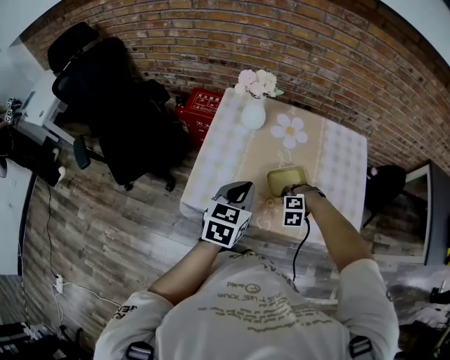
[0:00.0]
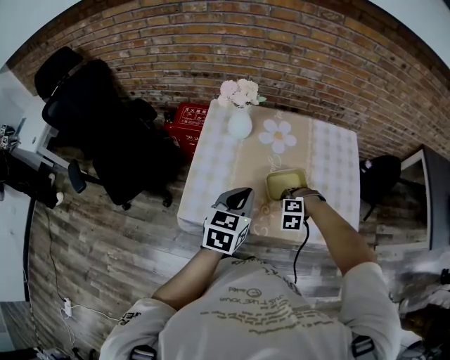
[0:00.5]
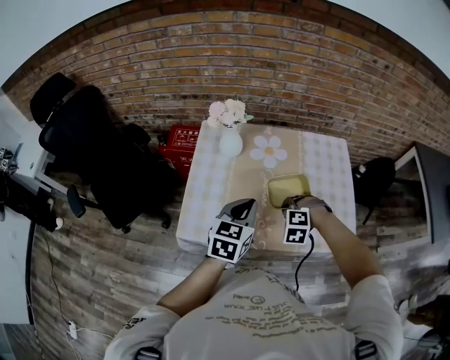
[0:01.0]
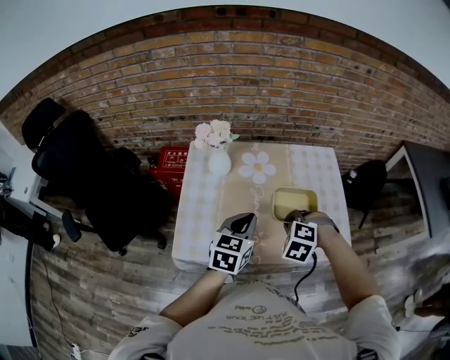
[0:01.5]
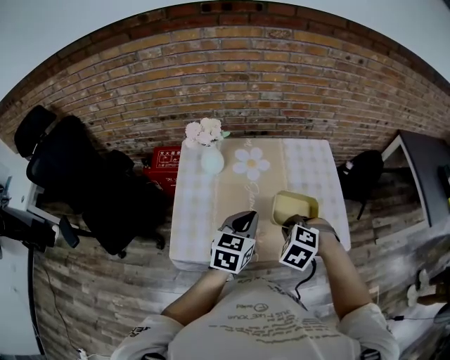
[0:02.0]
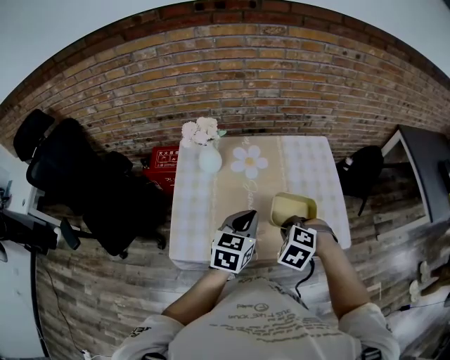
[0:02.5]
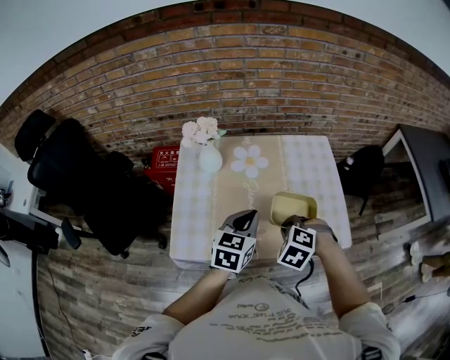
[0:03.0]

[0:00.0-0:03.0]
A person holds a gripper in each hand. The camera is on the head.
0:00.0 to 0:01.5: The right gripper goes roughly 20 cm upward, and changes its angle by about 30 degrees. The left gripper shifts by about 10 cm.
0:01.5 to 0:03.0: The grippers stay close to where they were, moving slightly.

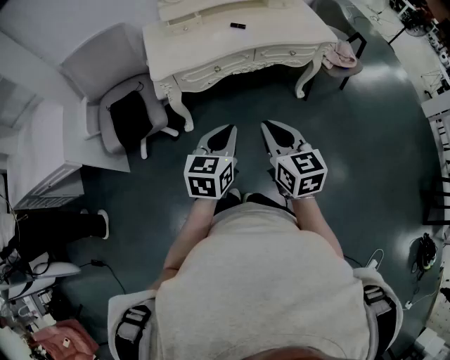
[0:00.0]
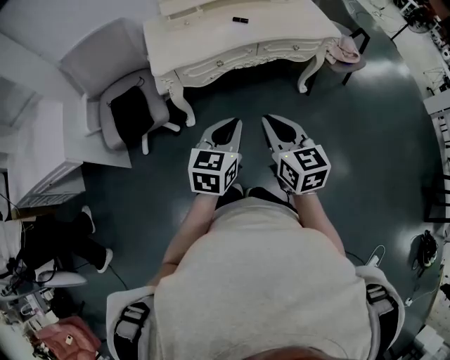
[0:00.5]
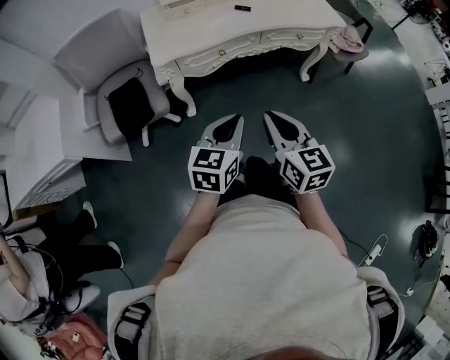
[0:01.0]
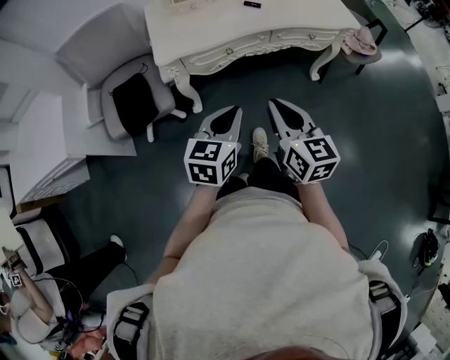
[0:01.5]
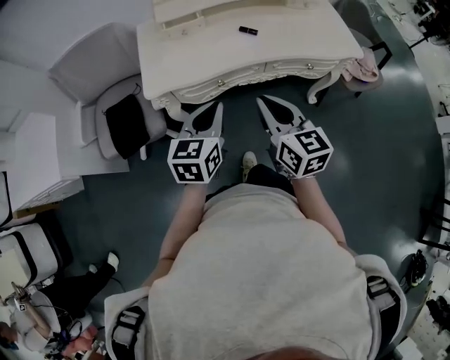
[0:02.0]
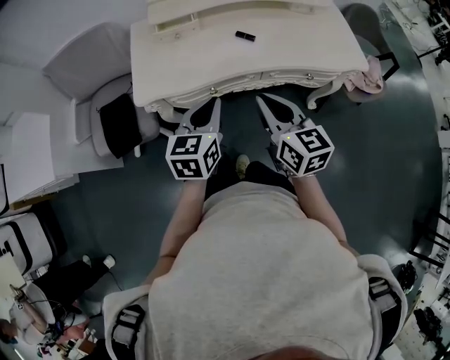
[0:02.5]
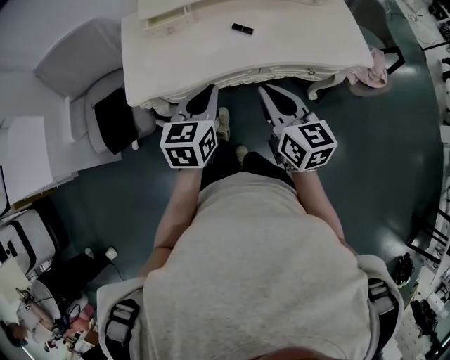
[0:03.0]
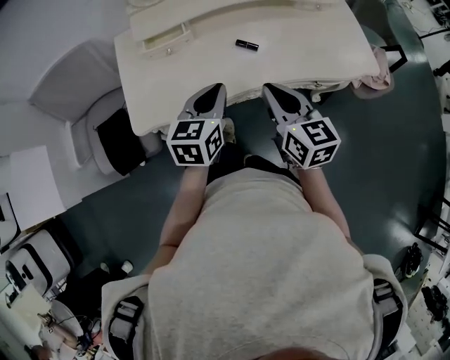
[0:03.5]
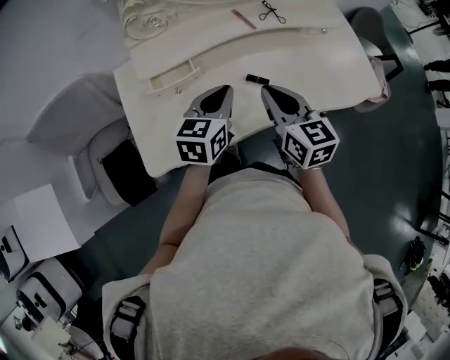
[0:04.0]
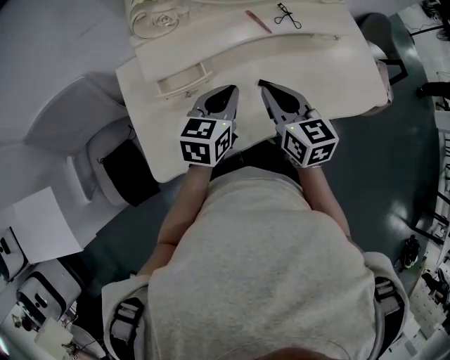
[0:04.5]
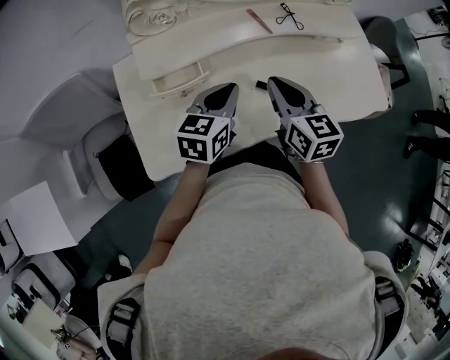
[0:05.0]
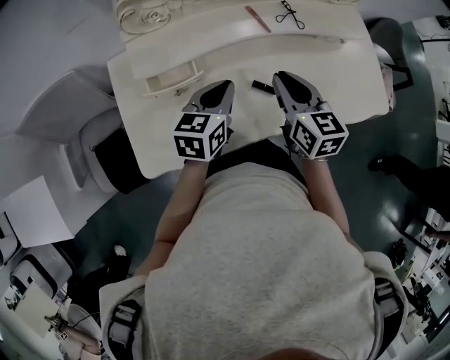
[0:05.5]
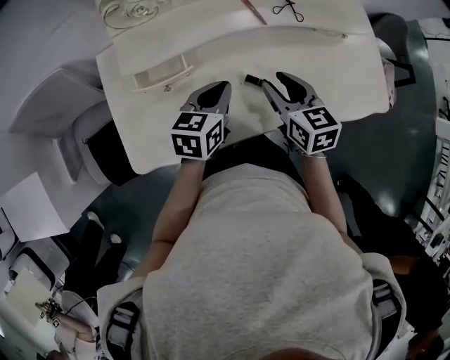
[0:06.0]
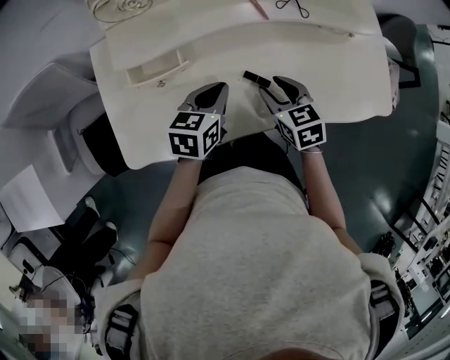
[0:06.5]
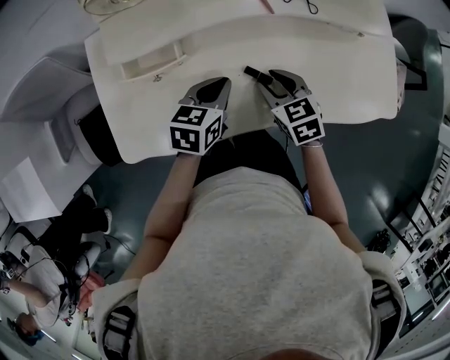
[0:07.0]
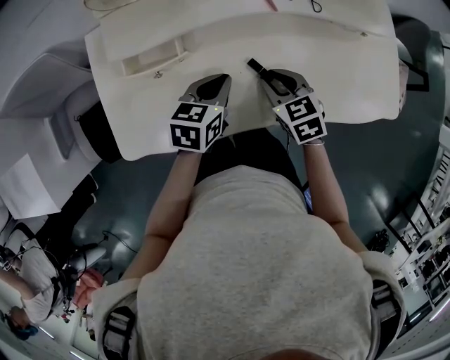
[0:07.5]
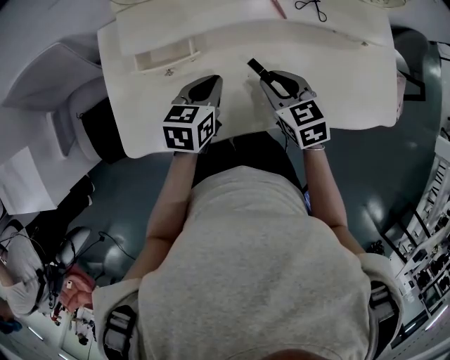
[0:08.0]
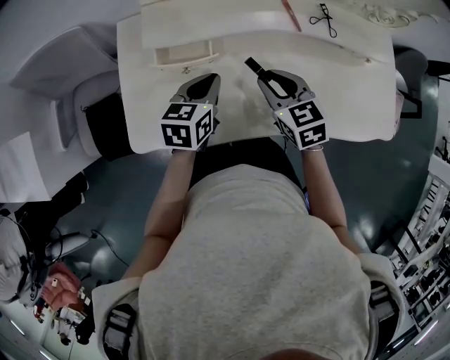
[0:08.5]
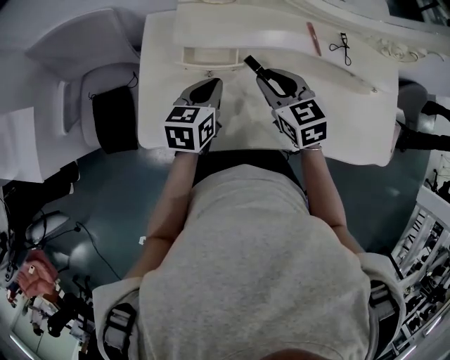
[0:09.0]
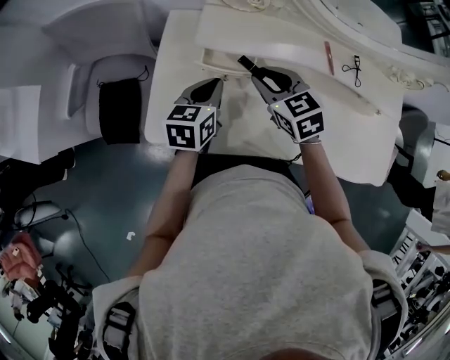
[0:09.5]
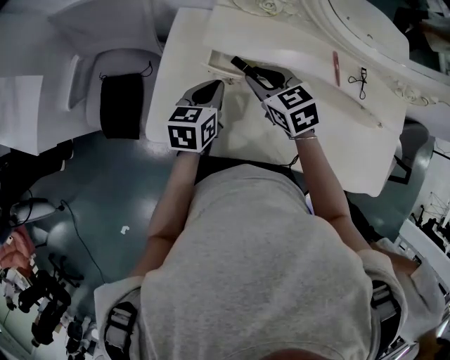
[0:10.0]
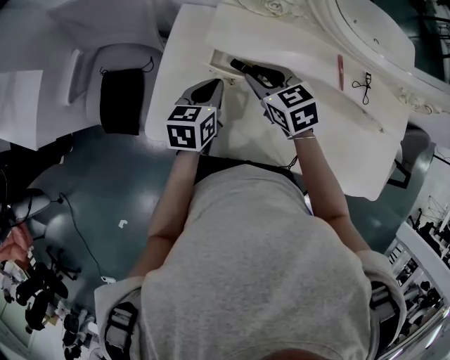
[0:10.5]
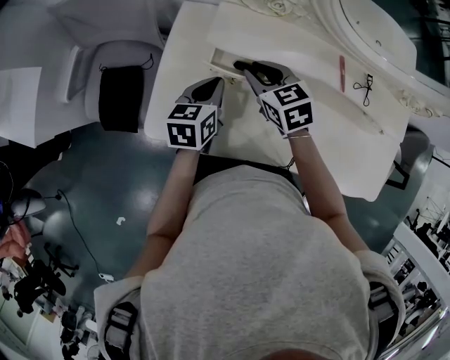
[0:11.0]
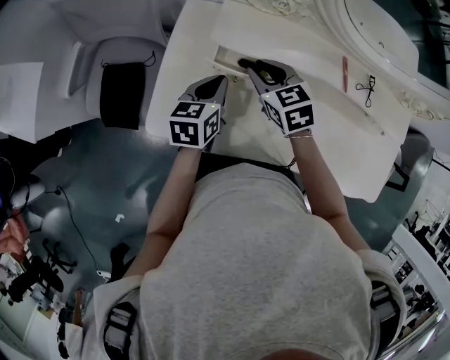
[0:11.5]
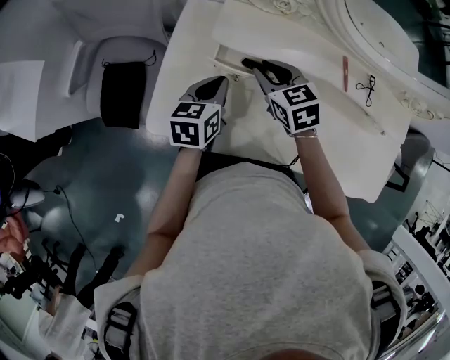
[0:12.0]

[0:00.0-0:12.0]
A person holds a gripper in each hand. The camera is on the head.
0:00.0 to 0:02.0: The grippers both shift forward by approximately 20 cm.
0:02.0 to 0:04.0: Both grippers travel together forward, about 30 cm.
0:04.0 to 0:06.0: The right gripper is displaced downward and forward by some 10 cm, and opens up, while the left gripper travels downward by approximately 5 cm.
0:06.0 to 0:08.0: The right gripper travels downward by approximately 5 cm, and rotates roughly 20 degrees. Meanwhile the left gripper shifts by roughly 5 cm.
0:08.0 to 0:10.0: The left gripper shifts about 15 cm to the left, and swivels roughly 20 degrees. The right gripper heads to the left and forward, covering approximately 20 cm, and changes its angle by about 30 degrees.
0:10.0 to 0:12.0: The grippers make only small movements.

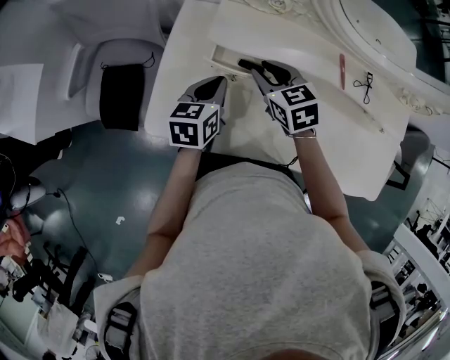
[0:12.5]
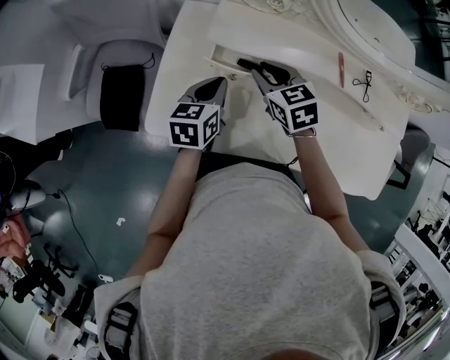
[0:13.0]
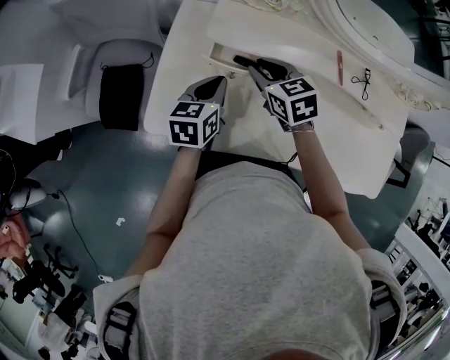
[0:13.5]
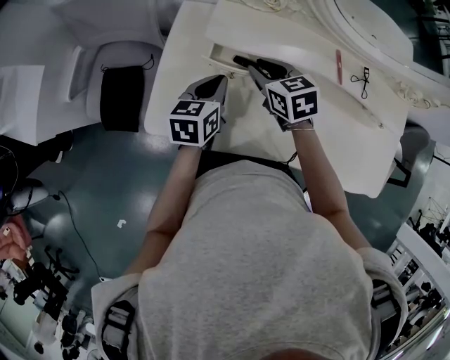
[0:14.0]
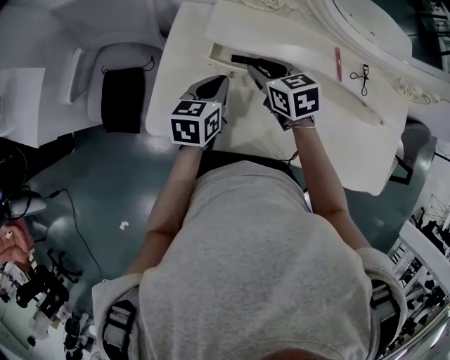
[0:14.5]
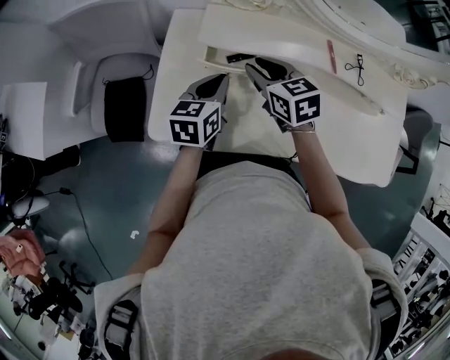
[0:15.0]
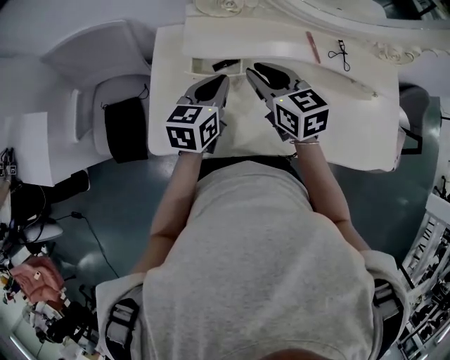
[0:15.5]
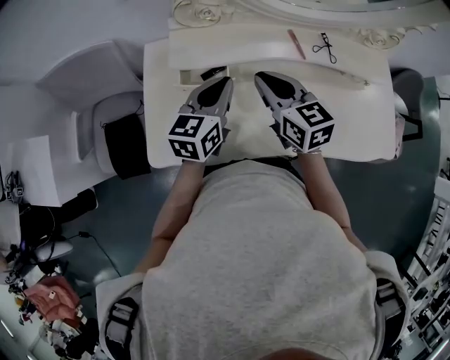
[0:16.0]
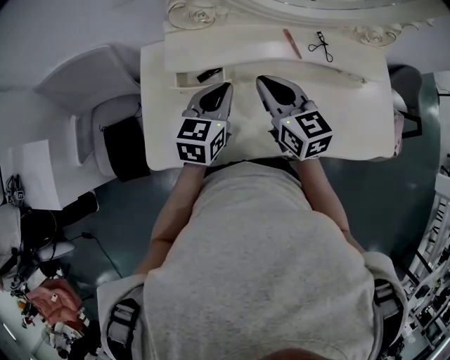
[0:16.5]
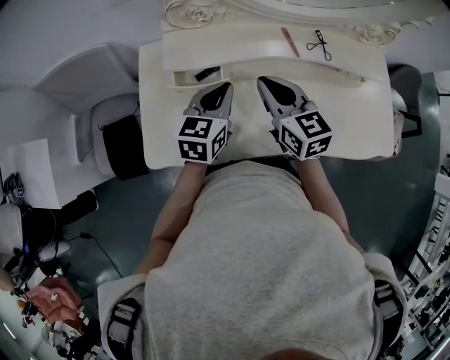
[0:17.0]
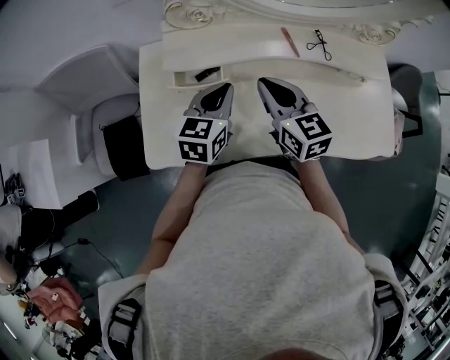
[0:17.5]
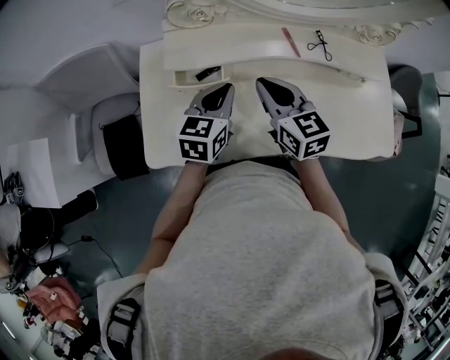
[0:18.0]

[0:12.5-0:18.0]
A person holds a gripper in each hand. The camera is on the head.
0:12.5 to 0:14.5: The grippers move only a little.
0:14.5 to 0:16.0: The right gripper moves upward, to the right and backward, about 15 cm, and turns by some 30 degrees, while the left gripper shifts roughly 10 cm to the right and upward, and rotates some 20 degrees.
0:16.0 to 0:18.0: The grippers make only small movements.

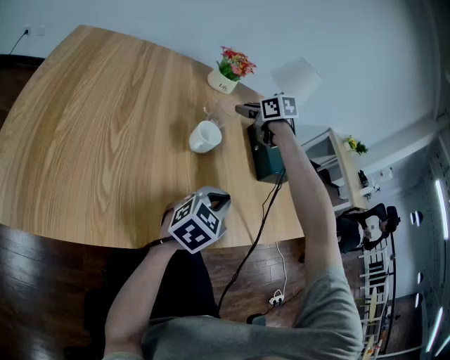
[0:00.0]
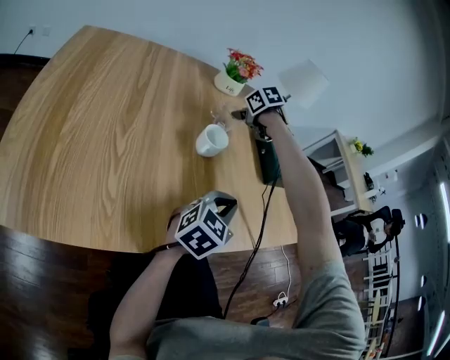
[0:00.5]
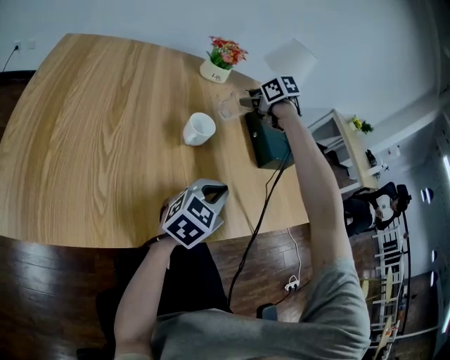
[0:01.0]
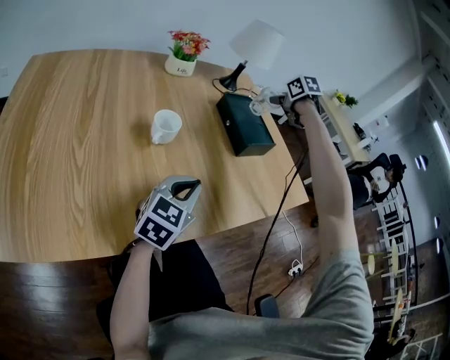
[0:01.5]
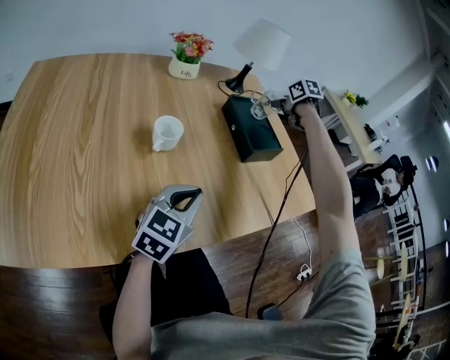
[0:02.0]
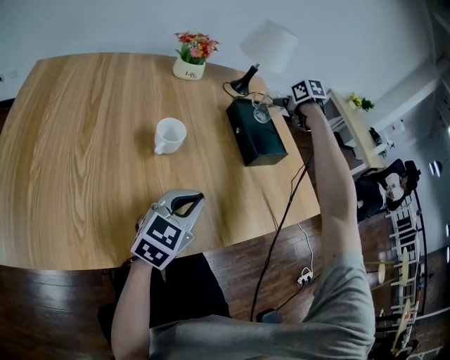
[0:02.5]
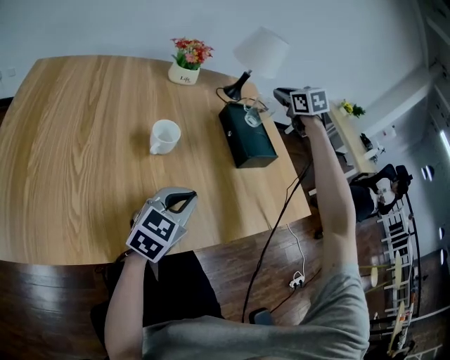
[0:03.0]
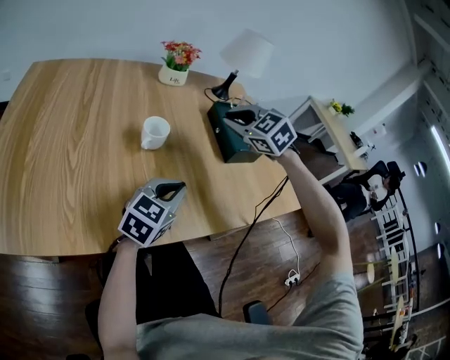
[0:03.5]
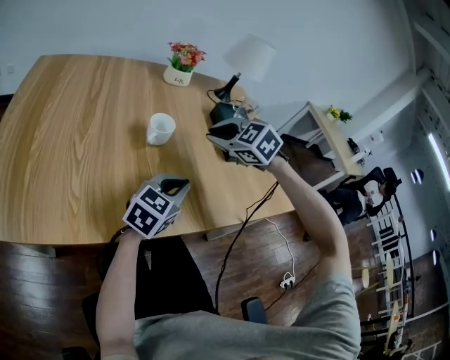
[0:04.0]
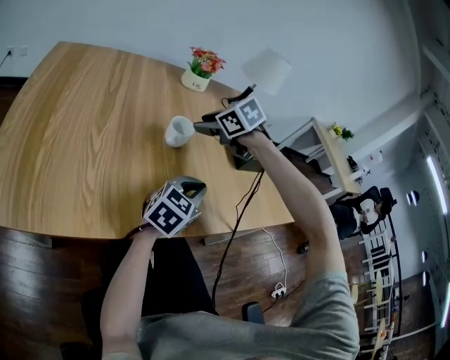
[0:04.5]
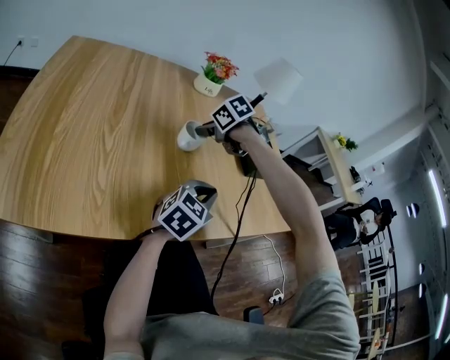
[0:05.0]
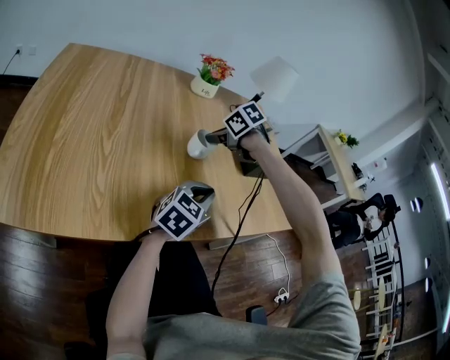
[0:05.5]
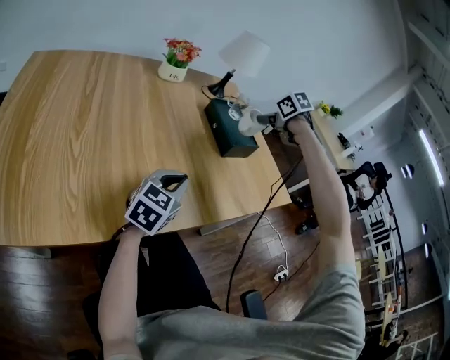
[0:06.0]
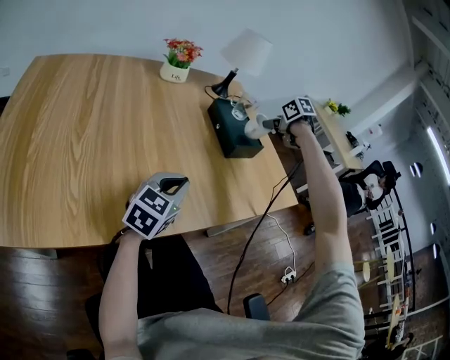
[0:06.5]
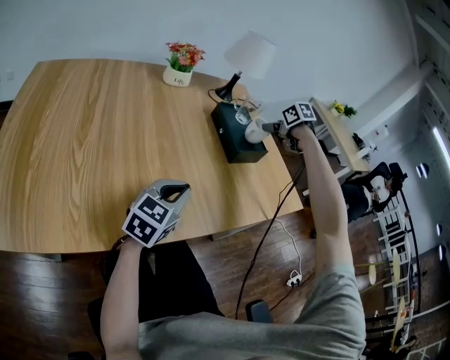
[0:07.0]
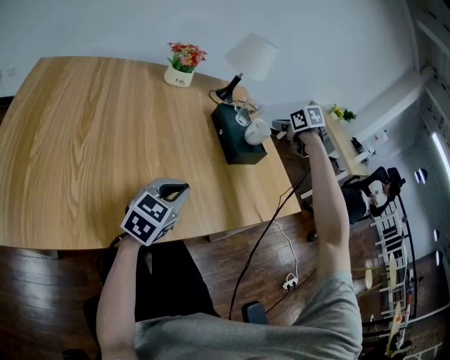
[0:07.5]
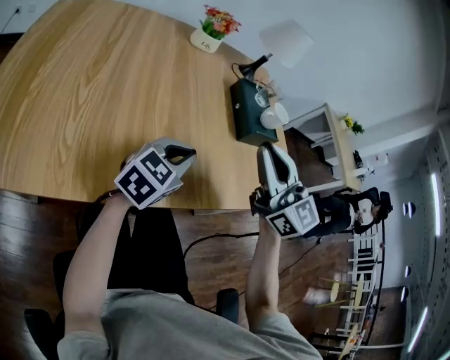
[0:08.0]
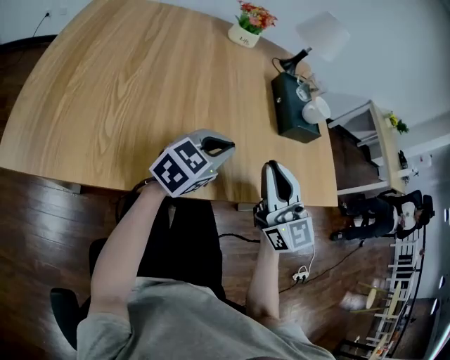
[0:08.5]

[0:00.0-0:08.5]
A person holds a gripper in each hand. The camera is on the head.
0:00.0 to 0:02.0: The right gripper shifts about 25 cm to the right, turns by roughly 30 degrees, and closes.
0:02.0 to 0:04.0: The right gripper is displaced backward and to the left by approximately 35 cm, and rotates around the line of its fingers by approximately 60 degrees, counterclockwise from behind.
0:04.0 to 0:06.5: The right gripper is displaced to the right and forward by about 30 cm, rolls clockwise, seen from behind, by roughly 60 degrees, and opens, then closes again.
0:06.5 to 0:08.5: The right gripper travels backward and to the left by approximately 35 cm, and angles its fingers upward, by approximately 70 degrees.
